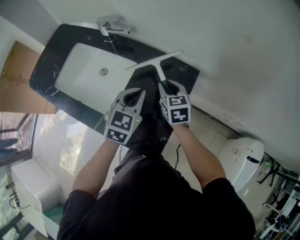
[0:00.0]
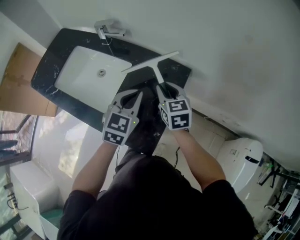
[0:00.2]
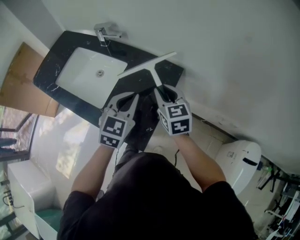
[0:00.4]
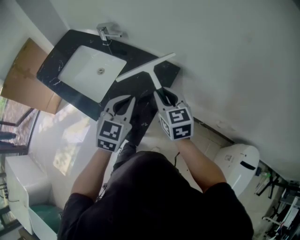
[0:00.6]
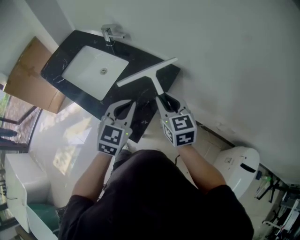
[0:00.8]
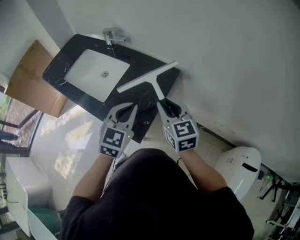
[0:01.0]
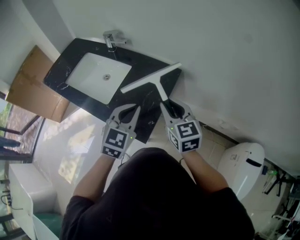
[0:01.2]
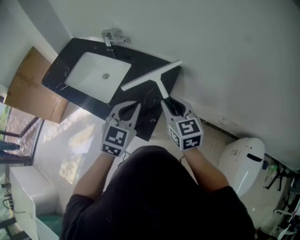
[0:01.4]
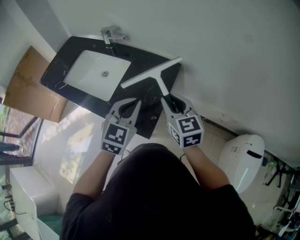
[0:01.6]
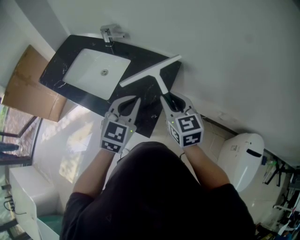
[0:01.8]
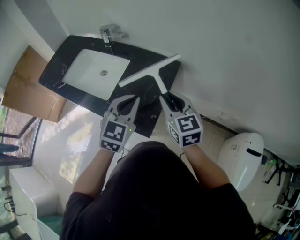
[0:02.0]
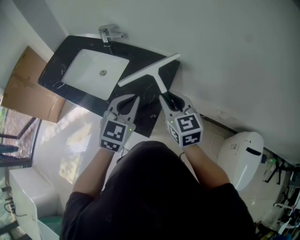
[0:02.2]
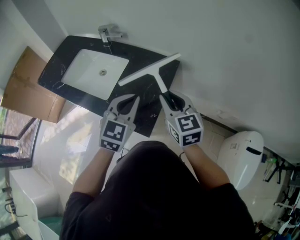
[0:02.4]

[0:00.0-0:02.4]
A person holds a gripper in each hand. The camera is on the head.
0:00.0 to 0:01.2: Both grippers move backward and upward, some 20 cm.
0:01.2 to 0:02.4: There are only small adjustments of the grippers.

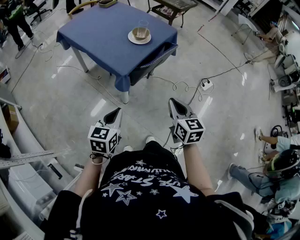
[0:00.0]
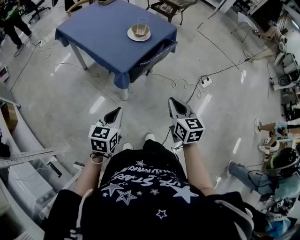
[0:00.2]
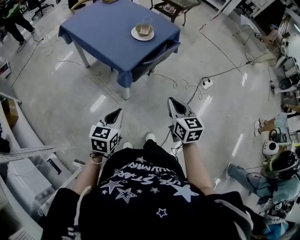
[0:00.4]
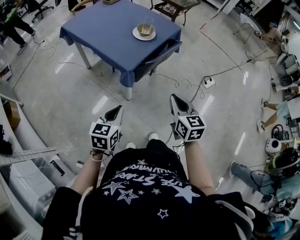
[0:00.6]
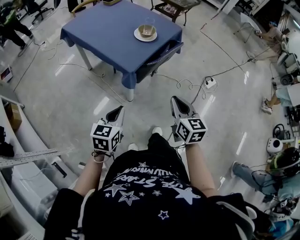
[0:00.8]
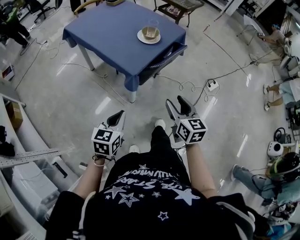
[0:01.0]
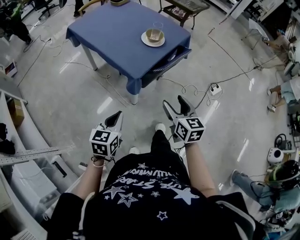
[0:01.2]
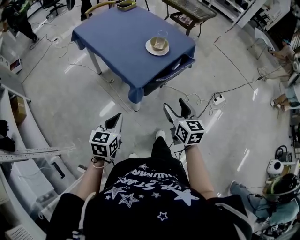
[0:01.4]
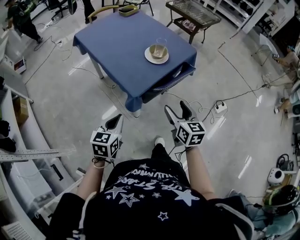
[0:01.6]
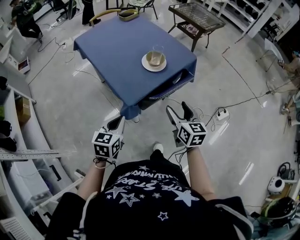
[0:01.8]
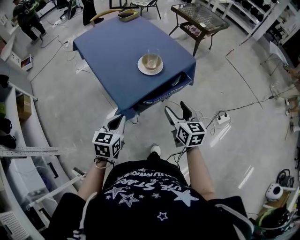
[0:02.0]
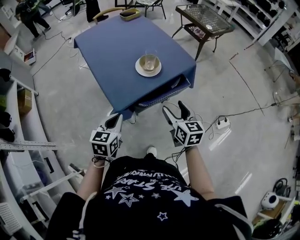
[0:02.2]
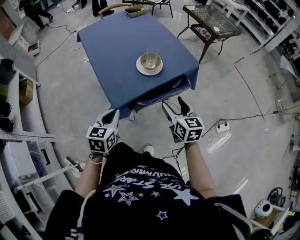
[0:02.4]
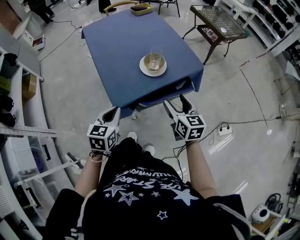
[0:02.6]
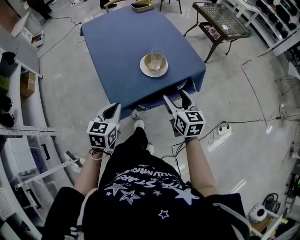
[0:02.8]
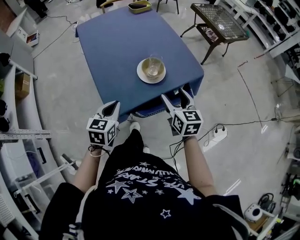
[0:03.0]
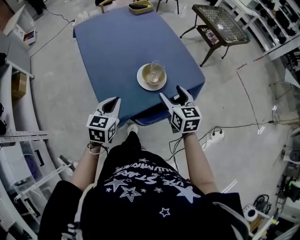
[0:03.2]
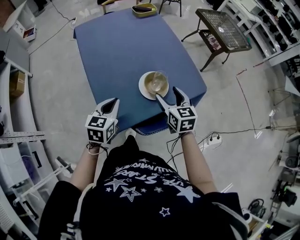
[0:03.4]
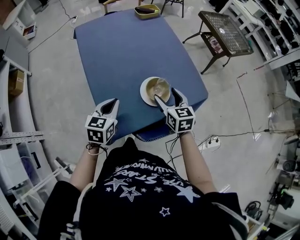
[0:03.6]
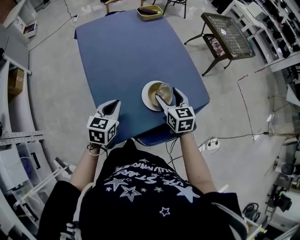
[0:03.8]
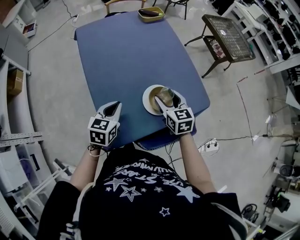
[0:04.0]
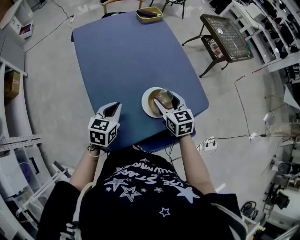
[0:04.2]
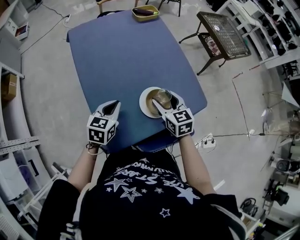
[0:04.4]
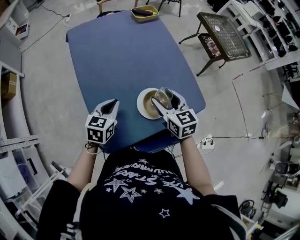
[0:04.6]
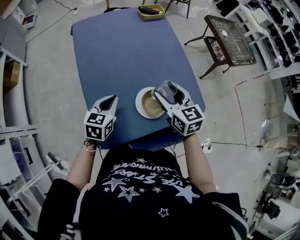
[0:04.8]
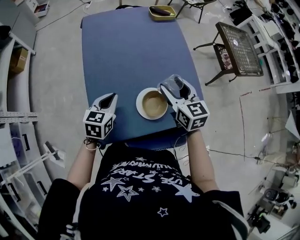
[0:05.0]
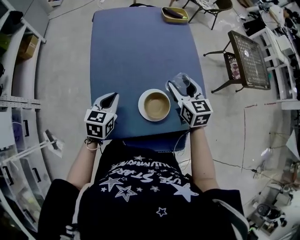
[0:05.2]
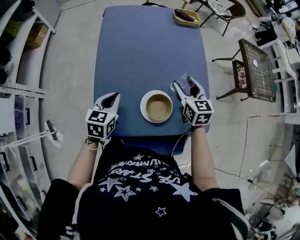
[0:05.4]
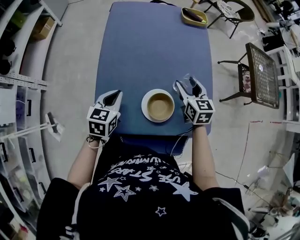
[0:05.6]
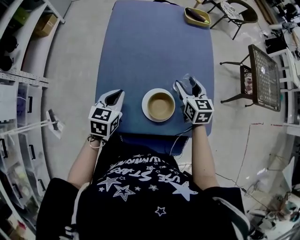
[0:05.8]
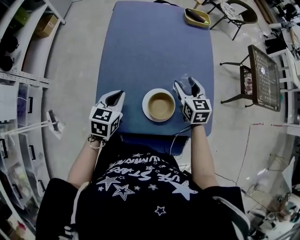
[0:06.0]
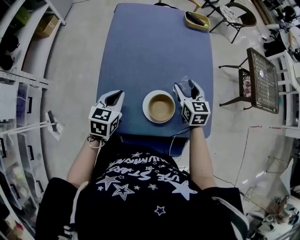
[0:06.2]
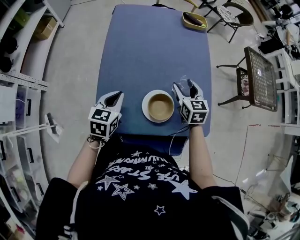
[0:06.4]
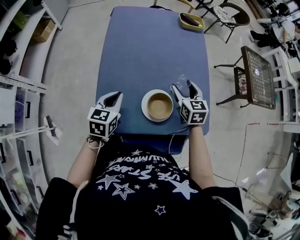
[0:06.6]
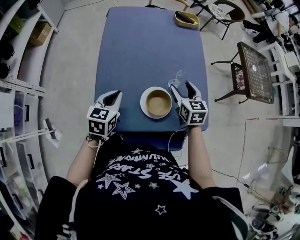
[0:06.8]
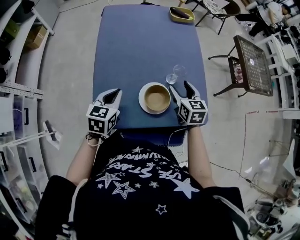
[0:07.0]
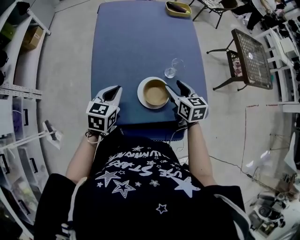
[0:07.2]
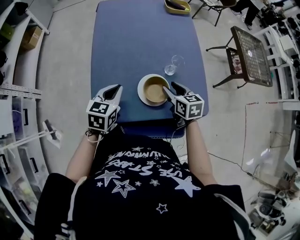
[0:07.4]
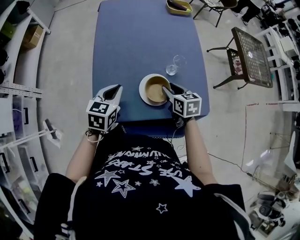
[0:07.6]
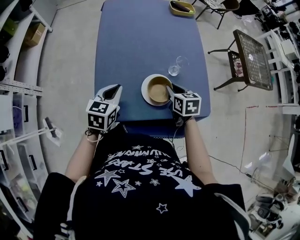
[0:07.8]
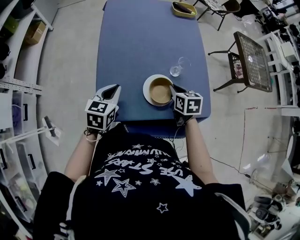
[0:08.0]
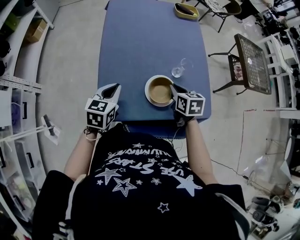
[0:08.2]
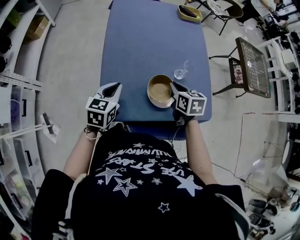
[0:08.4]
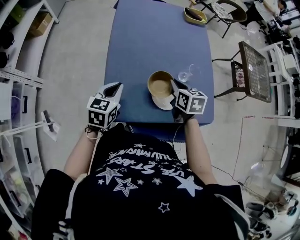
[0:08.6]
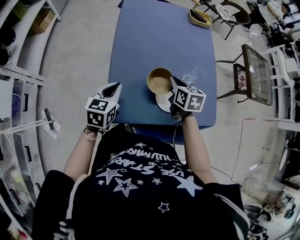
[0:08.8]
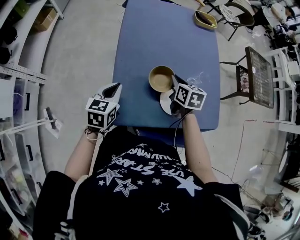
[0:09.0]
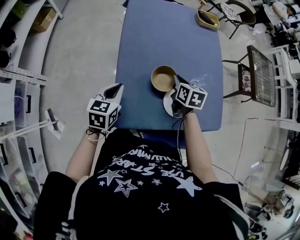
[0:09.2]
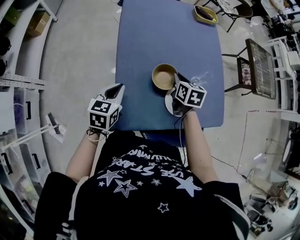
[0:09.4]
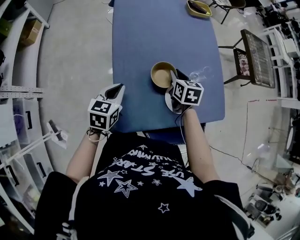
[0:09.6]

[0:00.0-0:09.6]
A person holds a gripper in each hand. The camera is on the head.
0:00.0 to 0:01.6: The right gripper travels forward by about 15 cm, and opens; the left gripper moves forward, approximately 10 cm.
0:01.6 to 0:03.2: The right gripper heads forward, covering some 30 cm, while the left gripper goes about 25 cm forward and to the right.
0:03.2 to 0:04.8: Both grippers travel together forward, roughly 15 cm.
0:04.8 to 0:06.4: The left gripper turns by approximately 20 degrees. Meanwhile the right gripper moves forward and downward, approximately 10 cm.
0:06.4 to 0:08.0: The right gripper moves backward, about 10 cm, rotates some 20 degrees, and closes.
0:08.0 to 0:09.6: The right gripper goes some 15 cm to the left and forward, while the left gripper goes some 10 cm to the left.

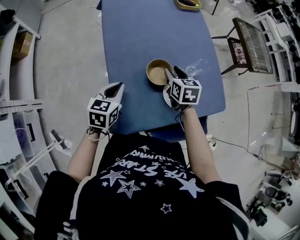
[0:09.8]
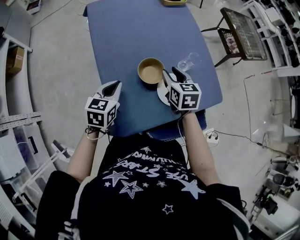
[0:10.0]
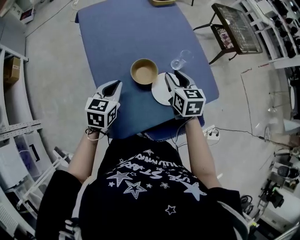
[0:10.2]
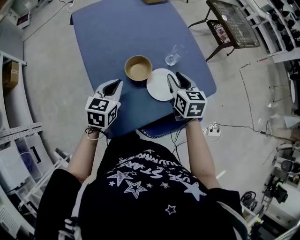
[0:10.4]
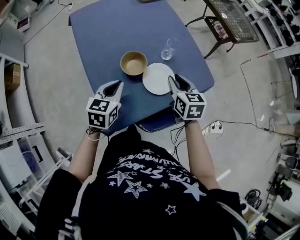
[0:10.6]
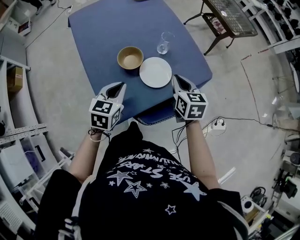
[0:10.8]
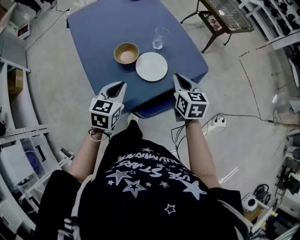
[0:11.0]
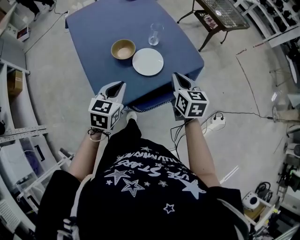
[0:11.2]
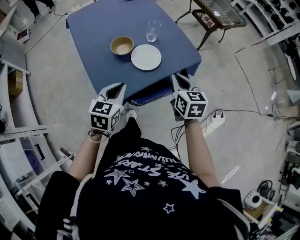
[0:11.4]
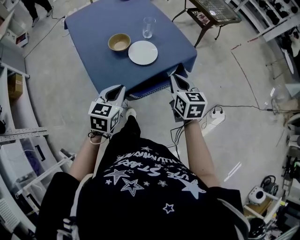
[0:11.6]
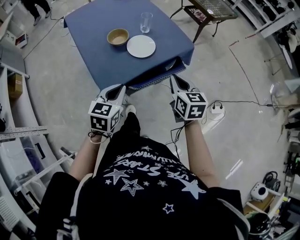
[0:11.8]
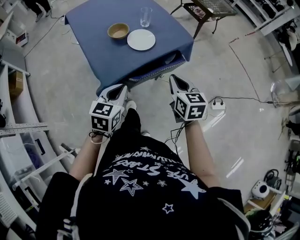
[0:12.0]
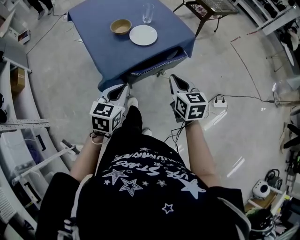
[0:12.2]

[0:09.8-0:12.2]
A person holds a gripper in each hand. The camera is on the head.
0:09.8 to 0:11.0: The left gripper goes about 15 cm to the right. Meanwhile the right gripper is displaced to the right and backward by roughly 25 cm, and closes its fingers.
0:11.0 to 0:12.2: The two grippers go some 20 cm backward.

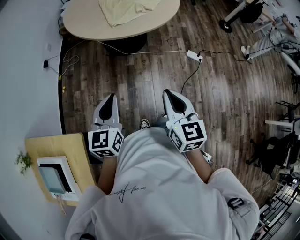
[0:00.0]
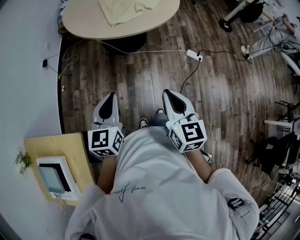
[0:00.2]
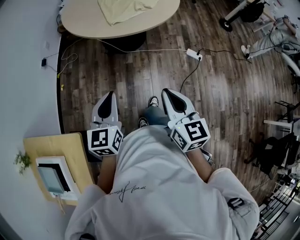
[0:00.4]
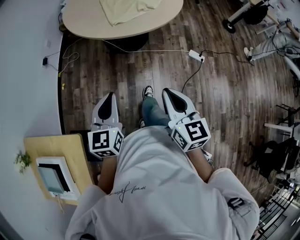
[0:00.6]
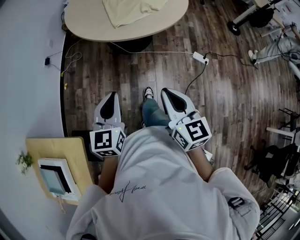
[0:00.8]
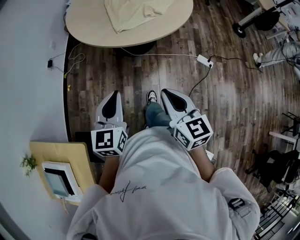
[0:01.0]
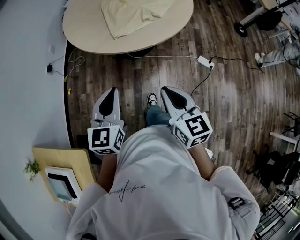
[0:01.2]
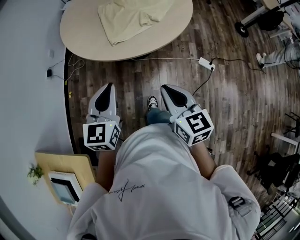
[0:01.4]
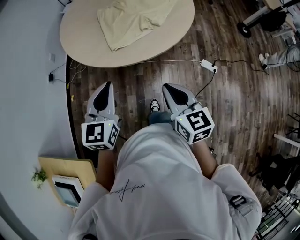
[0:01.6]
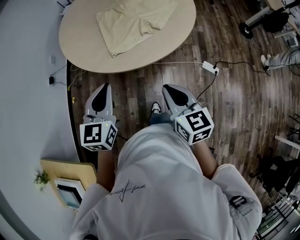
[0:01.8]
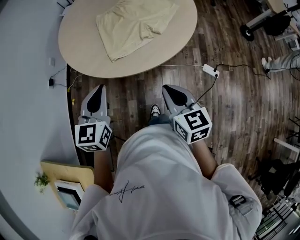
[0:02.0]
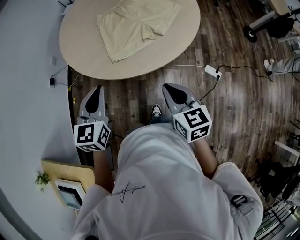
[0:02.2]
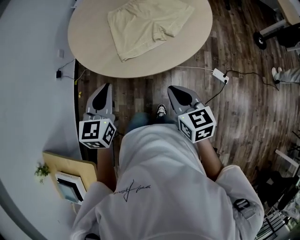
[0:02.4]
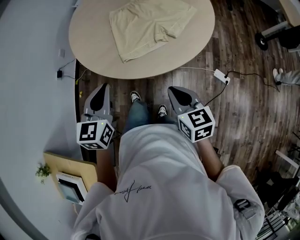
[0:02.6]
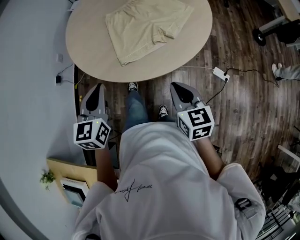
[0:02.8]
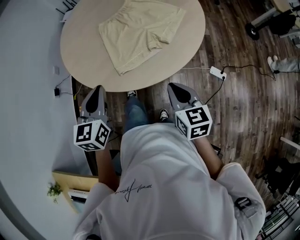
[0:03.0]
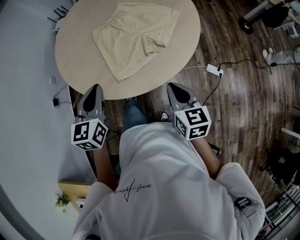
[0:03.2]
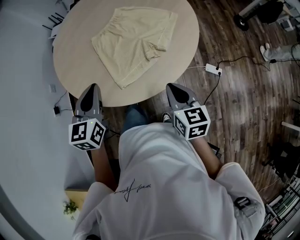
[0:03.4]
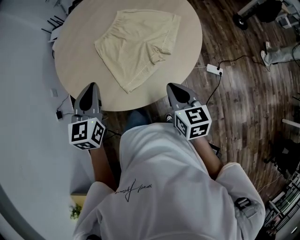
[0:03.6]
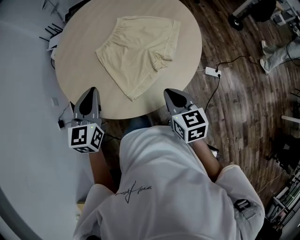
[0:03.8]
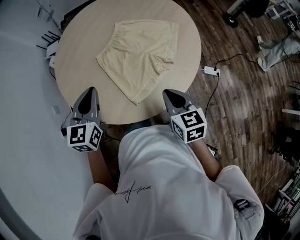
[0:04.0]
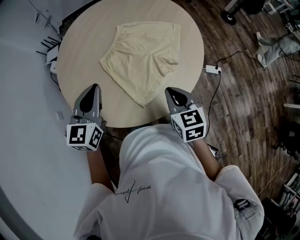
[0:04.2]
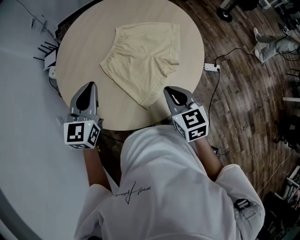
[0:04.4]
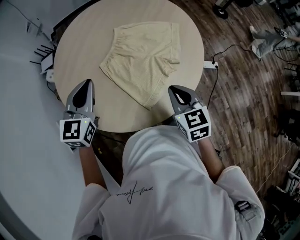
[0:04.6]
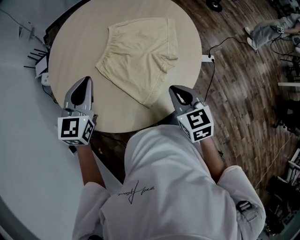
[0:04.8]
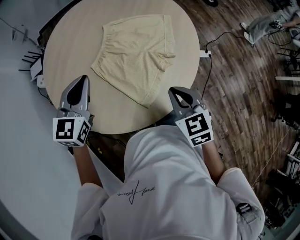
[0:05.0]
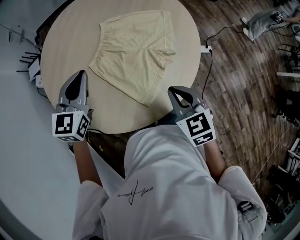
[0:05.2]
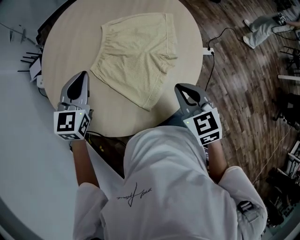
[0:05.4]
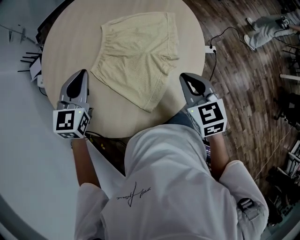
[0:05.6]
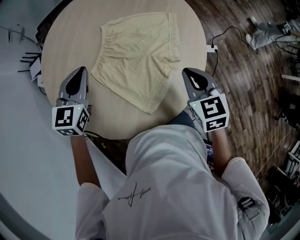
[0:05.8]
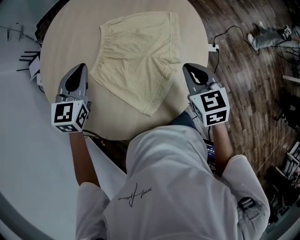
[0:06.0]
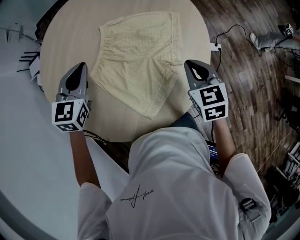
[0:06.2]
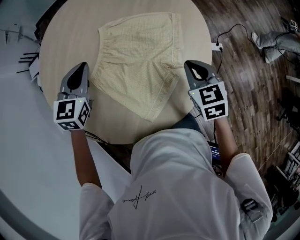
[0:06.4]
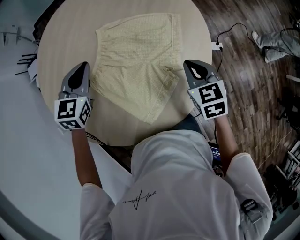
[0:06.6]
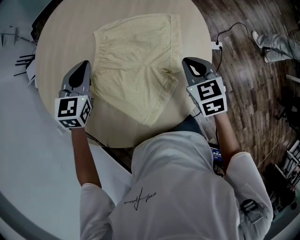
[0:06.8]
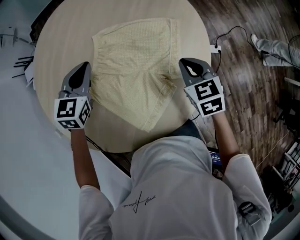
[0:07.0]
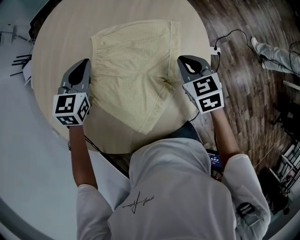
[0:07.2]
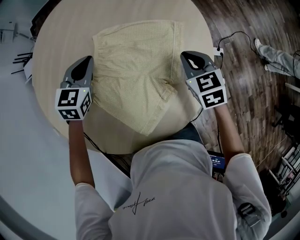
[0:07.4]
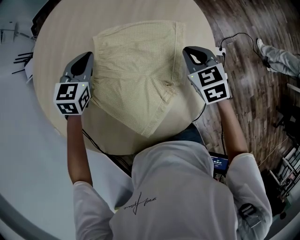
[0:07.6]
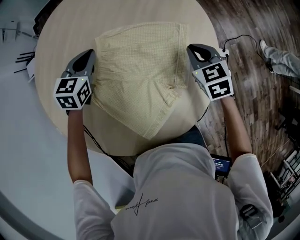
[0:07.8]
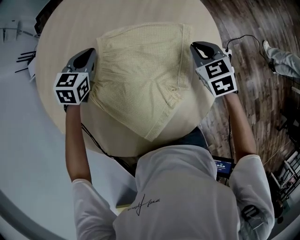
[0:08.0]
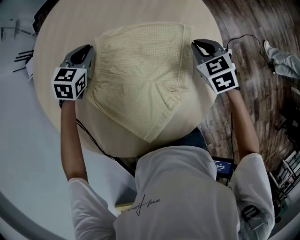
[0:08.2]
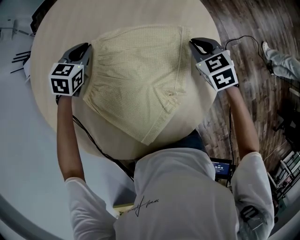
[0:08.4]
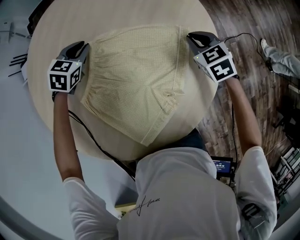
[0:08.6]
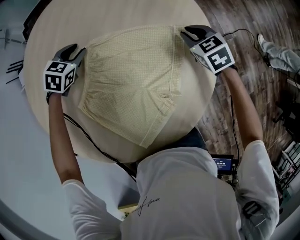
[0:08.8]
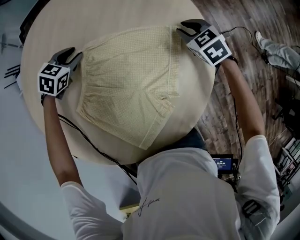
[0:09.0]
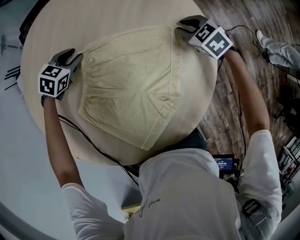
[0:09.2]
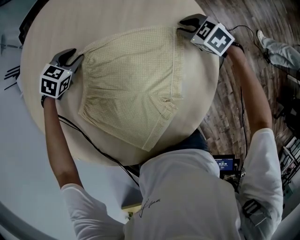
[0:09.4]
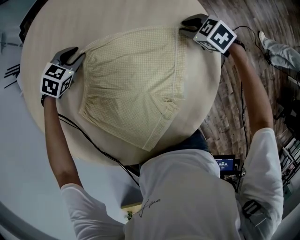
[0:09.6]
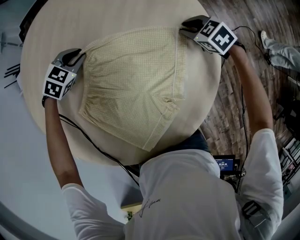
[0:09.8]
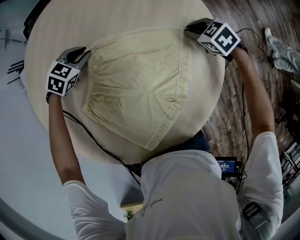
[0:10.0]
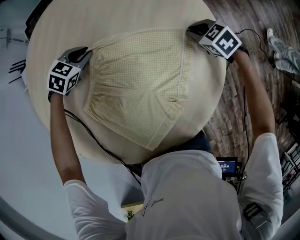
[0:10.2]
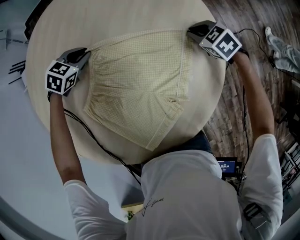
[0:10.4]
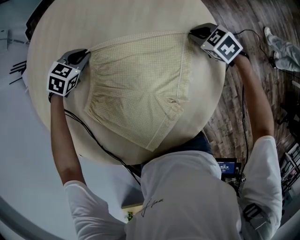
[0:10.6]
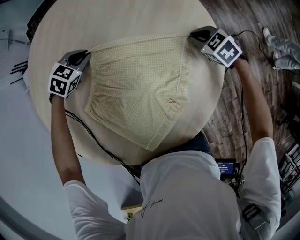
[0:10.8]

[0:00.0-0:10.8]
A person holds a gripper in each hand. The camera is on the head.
0:00.0 to 0:01.6: Both grippers move forward, approximately 30 cm.
0:01.6 to 0:03.0: Both grippers travel together forward, about 15 cm.
0:03.0 to 0:04.6: The left gripper shifts by approximately 30 cm, and turns by roughly 40 degrees, while the right gripper shifts by roughly 20 cm, and turns by roughly 20 degrees.
0:04.6 to 0:06.2: The right gripper heads forward and to the right, covering roughly 20 cm, while the left gripper shifts roughly 20 cm forward and downward.
0:06.2 to 0:07.8: Both grippers move forward and downward, approximately 20 cm.
0:07.8 to 0:09.2: The right gripper shifts some 15 cm forward and downward, and swivels approximately 20 degrees. The left gripper is displaced downward and forward by approximately 15 cm, rotates about 30 degrees, and opens.
0:09.2 to 0:10.8: The grippers stay close to where they were, moving slightly.
